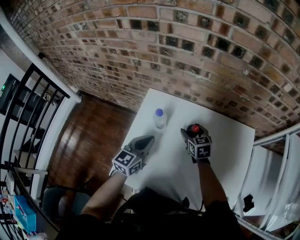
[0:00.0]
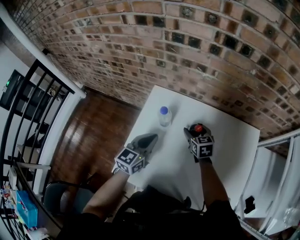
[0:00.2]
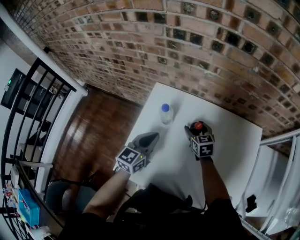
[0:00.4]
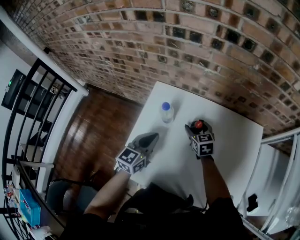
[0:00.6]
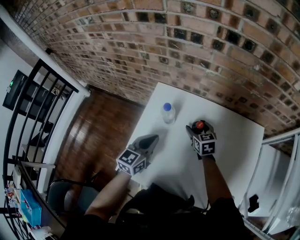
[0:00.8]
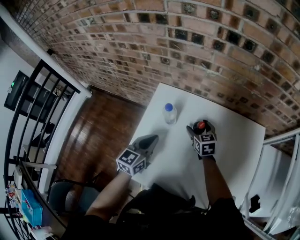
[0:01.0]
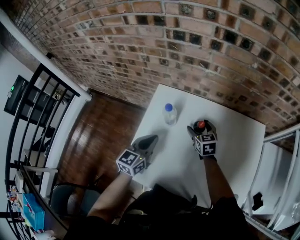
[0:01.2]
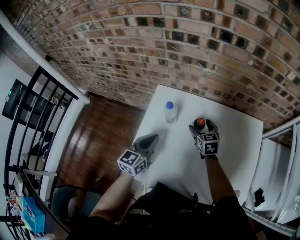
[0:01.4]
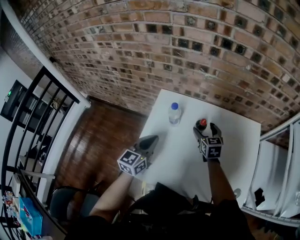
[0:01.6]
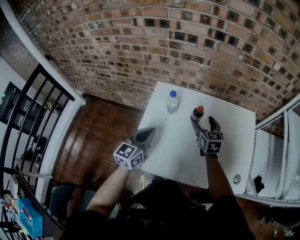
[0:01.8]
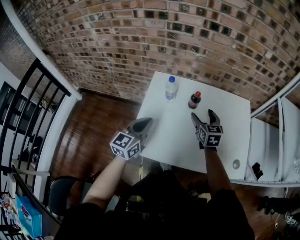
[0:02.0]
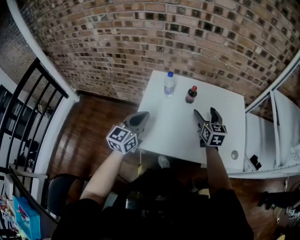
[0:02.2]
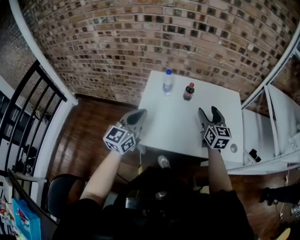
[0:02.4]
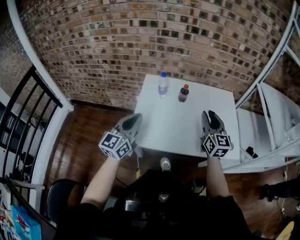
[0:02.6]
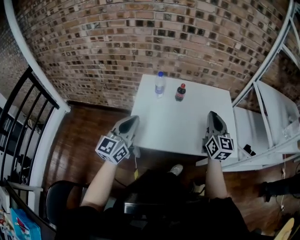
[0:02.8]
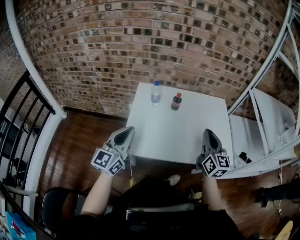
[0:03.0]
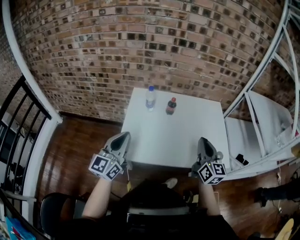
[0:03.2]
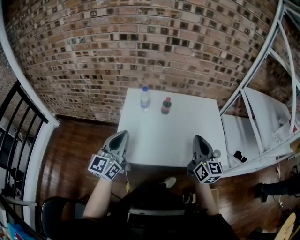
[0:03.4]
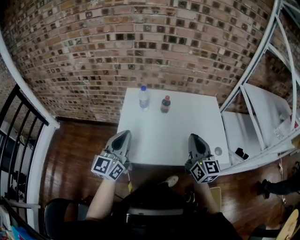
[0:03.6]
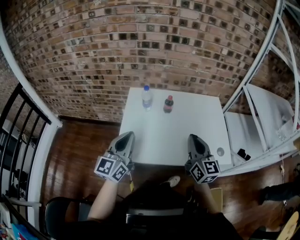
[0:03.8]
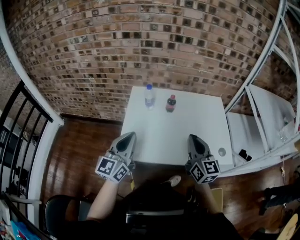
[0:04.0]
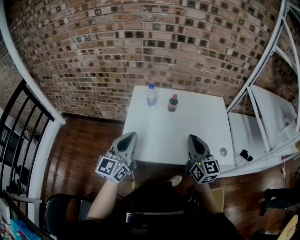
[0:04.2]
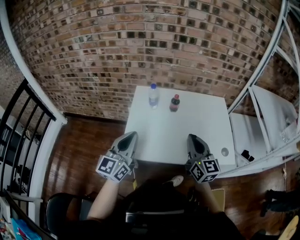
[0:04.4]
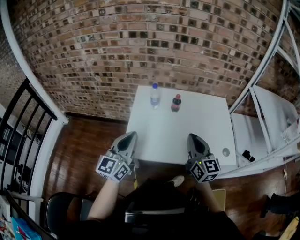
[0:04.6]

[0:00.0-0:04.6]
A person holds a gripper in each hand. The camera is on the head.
0:00.0 to 0:01.6: The left gripper travels backward by approximately 5 cm.
0:01.6 to 0:03.0: Both grippers move backward and upward, about 30 cm. The right gripper angles its fingers upward, by approximately 30 degrees, and closes up, while the left gripper turns by some 20 degrees.
0:03.0 to 0:04.6: The right gripper travels to the left by some 5 cm.

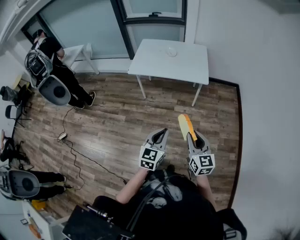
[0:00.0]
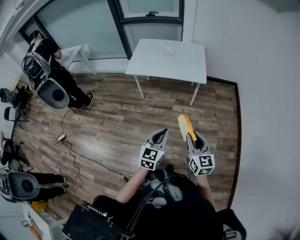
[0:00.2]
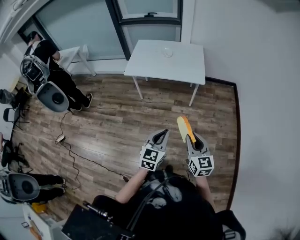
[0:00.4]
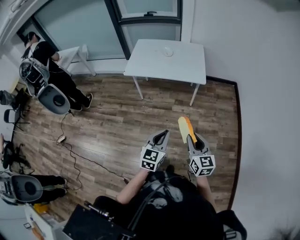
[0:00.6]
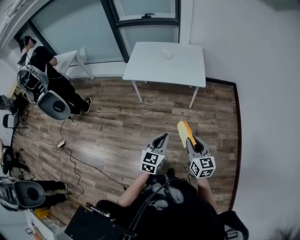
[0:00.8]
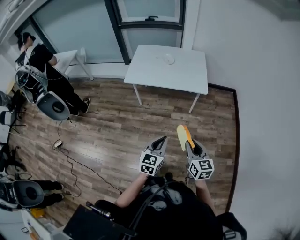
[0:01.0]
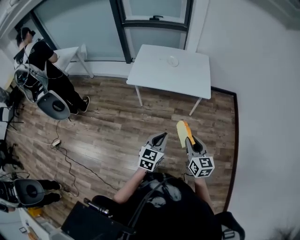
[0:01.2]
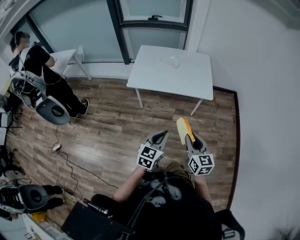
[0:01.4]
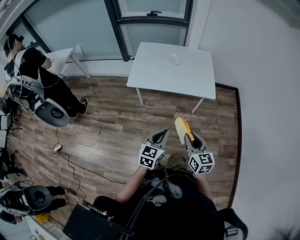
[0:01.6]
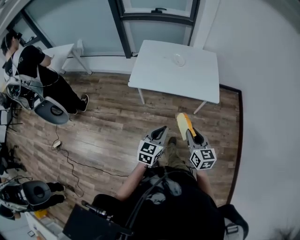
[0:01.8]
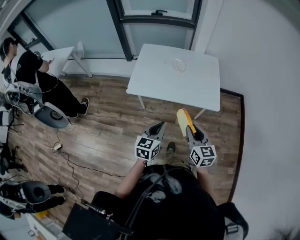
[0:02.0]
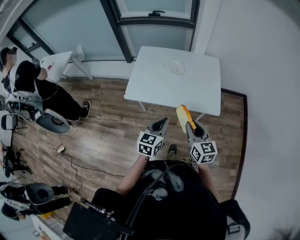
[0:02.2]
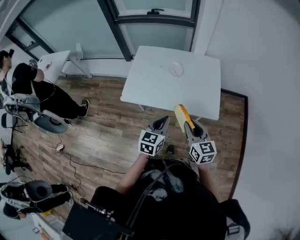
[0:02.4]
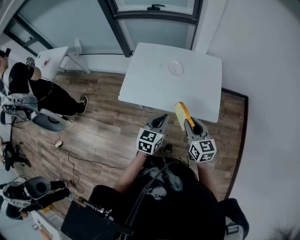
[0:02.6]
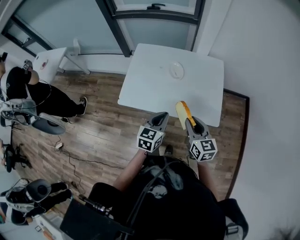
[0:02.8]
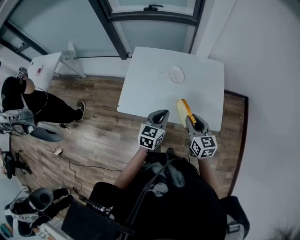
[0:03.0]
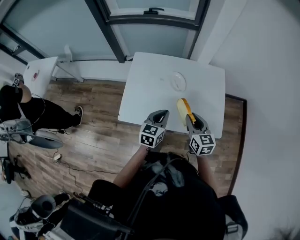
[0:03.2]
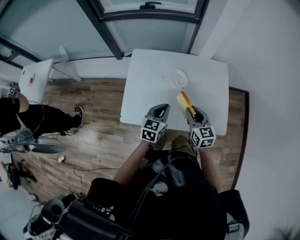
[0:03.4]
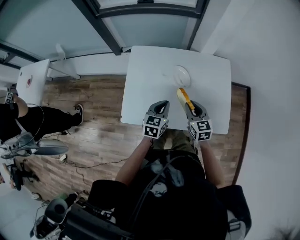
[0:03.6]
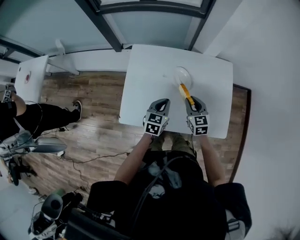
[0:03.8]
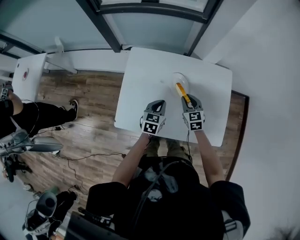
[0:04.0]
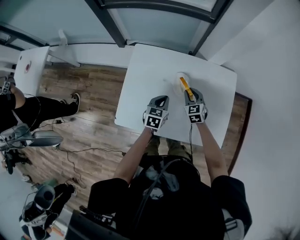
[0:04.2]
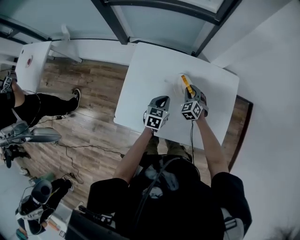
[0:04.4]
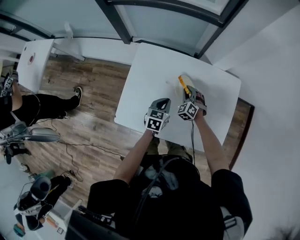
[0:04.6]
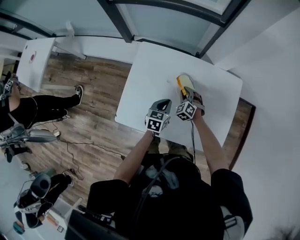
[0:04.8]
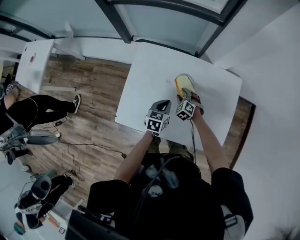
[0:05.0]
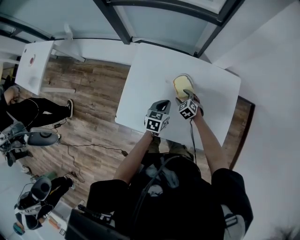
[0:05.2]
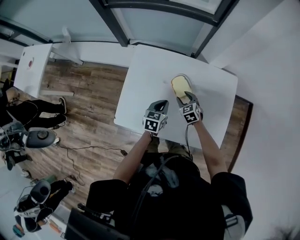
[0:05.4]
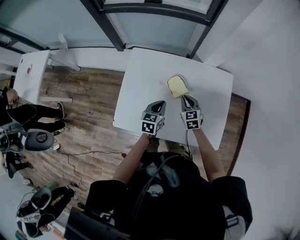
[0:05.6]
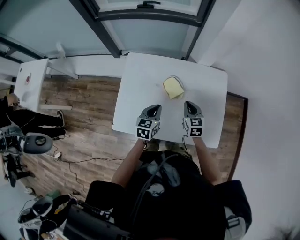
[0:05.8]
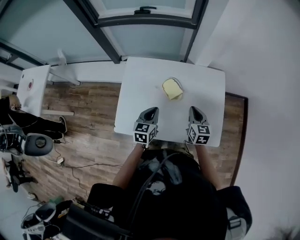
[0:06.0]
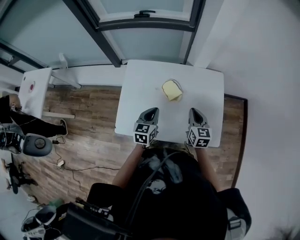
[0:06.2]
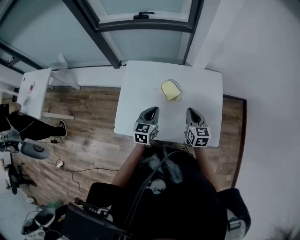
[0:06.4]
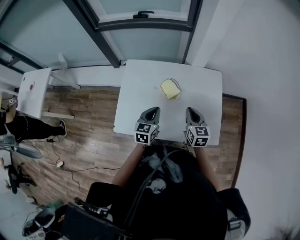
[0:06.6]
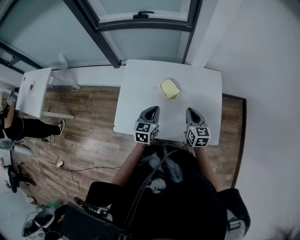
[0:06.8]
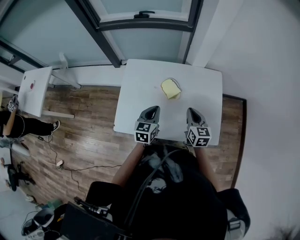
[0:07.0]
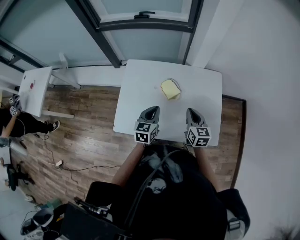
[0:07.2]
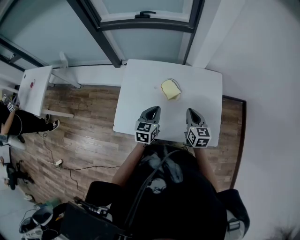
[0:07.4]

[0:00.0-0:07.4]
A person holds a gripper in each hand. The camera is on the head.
0:00.0 to 0:01.4: Both grippers move forward and to the left, roughly 15 cm.
0:01.4 to 0:03.0: Both grippers are carried forward, about 40 cm.
0:03.0 to 0:04.4: Both grippers travel together forward and downward, approximately 35 cm. The right gripper rotates around the line of its fingers by approximately 40 degrees, counterclockwise from behind.
0:04.4 to 0:06.0: The left gripper moves upward and backward, about 10 cm. The right gripper heads backward, upward and to the right, covering approximately 20 cm, twists some 50 degrees clockwise, seen from behind, and opens, then closes once more.
0:06.0 to 0:07.4: The grippers make only small movements.

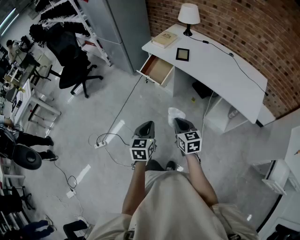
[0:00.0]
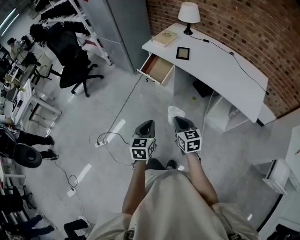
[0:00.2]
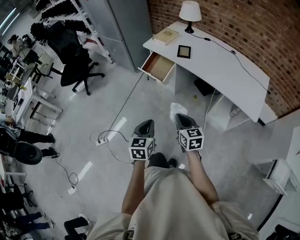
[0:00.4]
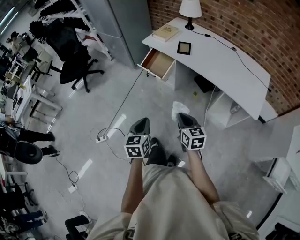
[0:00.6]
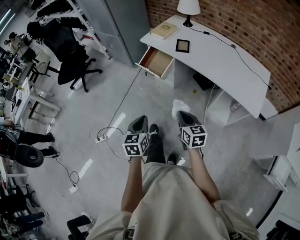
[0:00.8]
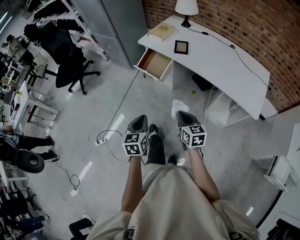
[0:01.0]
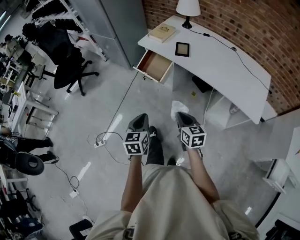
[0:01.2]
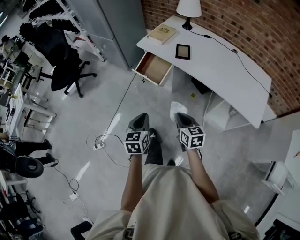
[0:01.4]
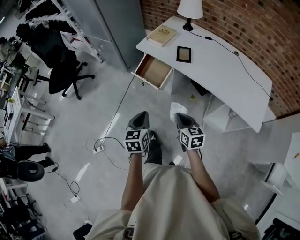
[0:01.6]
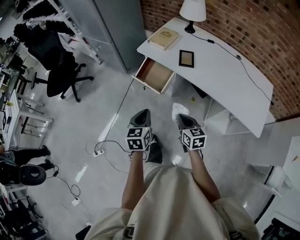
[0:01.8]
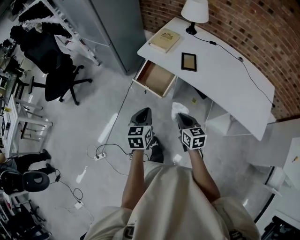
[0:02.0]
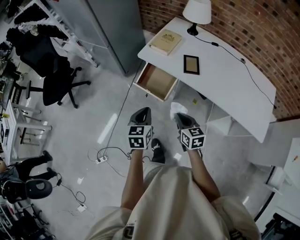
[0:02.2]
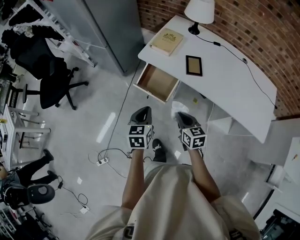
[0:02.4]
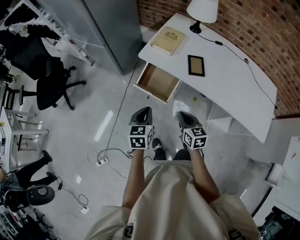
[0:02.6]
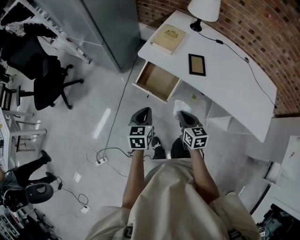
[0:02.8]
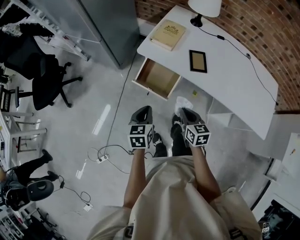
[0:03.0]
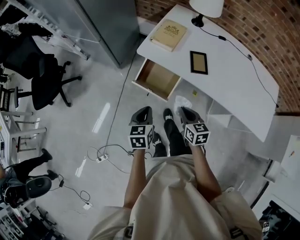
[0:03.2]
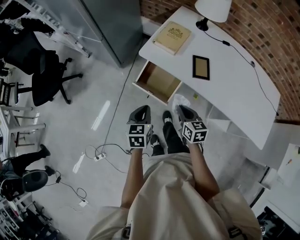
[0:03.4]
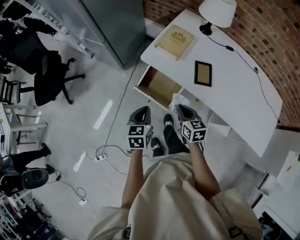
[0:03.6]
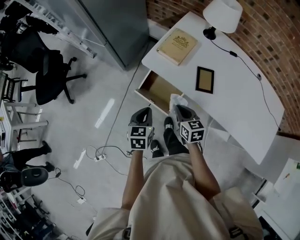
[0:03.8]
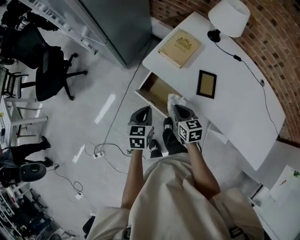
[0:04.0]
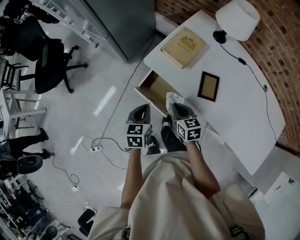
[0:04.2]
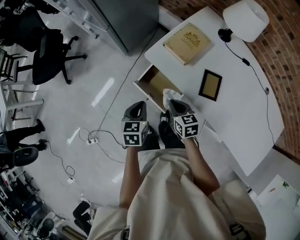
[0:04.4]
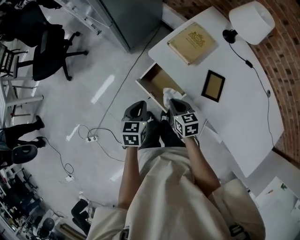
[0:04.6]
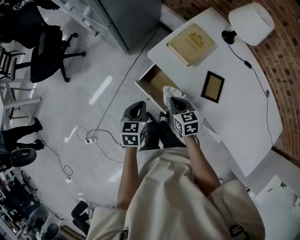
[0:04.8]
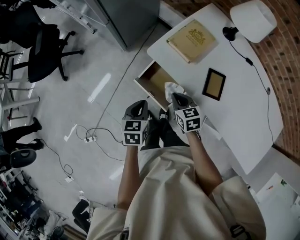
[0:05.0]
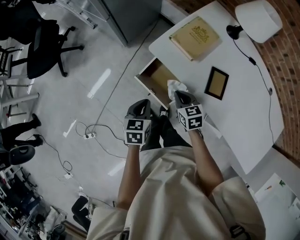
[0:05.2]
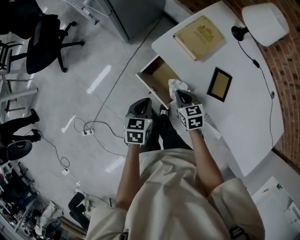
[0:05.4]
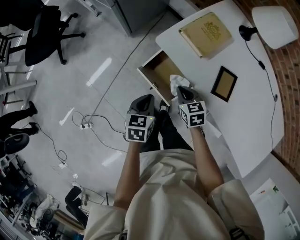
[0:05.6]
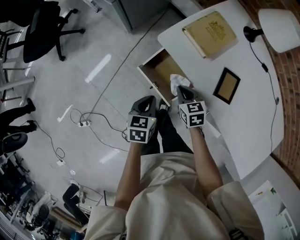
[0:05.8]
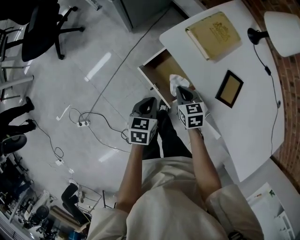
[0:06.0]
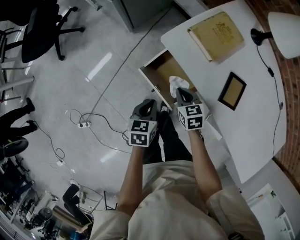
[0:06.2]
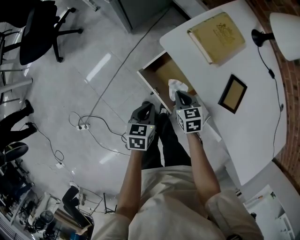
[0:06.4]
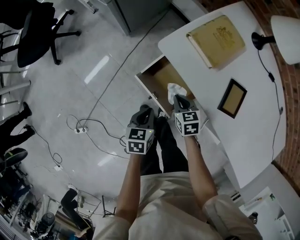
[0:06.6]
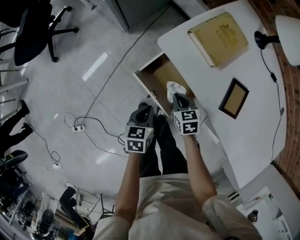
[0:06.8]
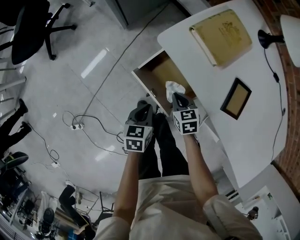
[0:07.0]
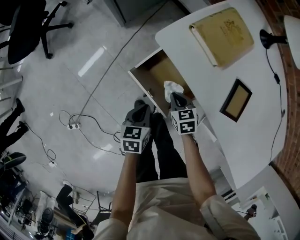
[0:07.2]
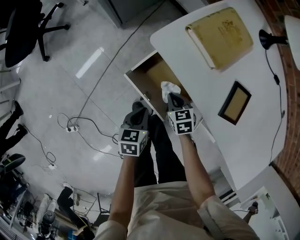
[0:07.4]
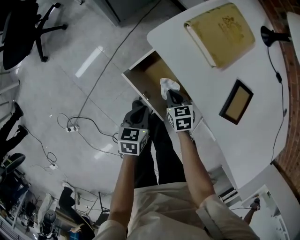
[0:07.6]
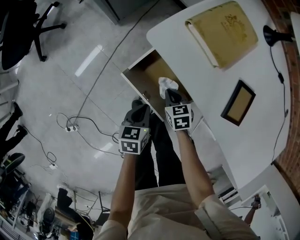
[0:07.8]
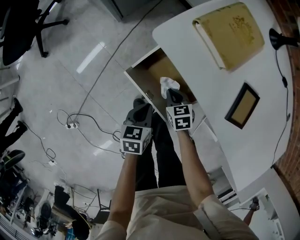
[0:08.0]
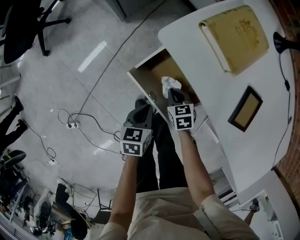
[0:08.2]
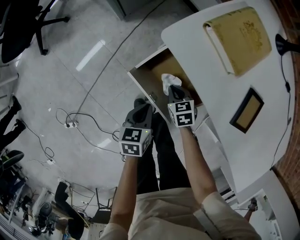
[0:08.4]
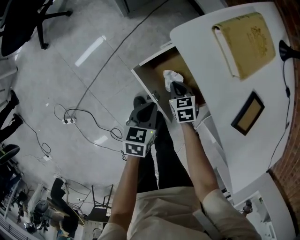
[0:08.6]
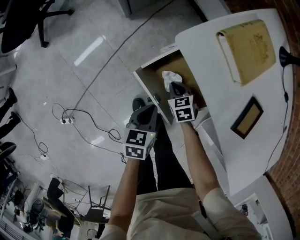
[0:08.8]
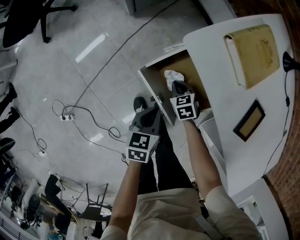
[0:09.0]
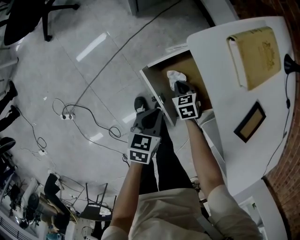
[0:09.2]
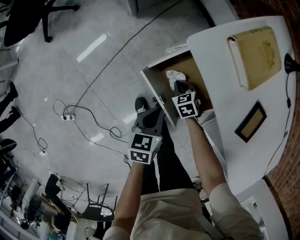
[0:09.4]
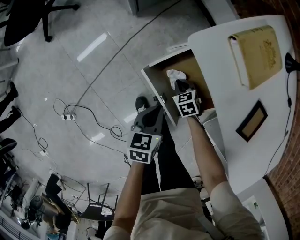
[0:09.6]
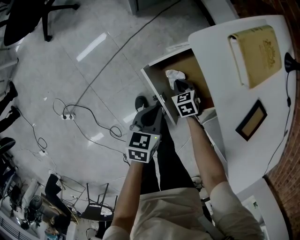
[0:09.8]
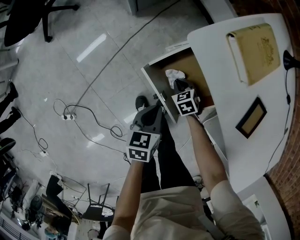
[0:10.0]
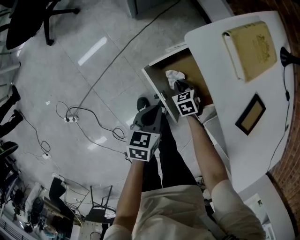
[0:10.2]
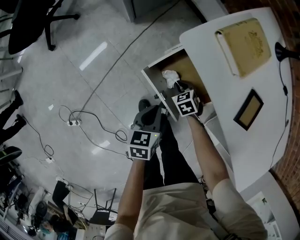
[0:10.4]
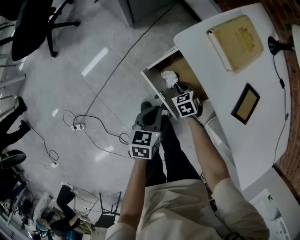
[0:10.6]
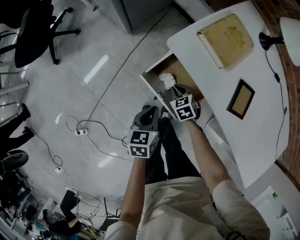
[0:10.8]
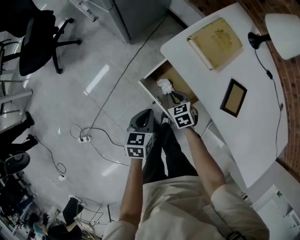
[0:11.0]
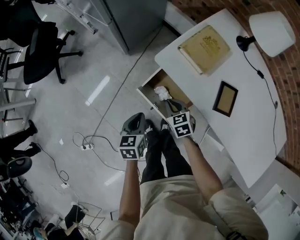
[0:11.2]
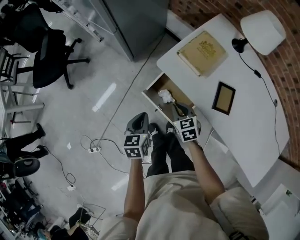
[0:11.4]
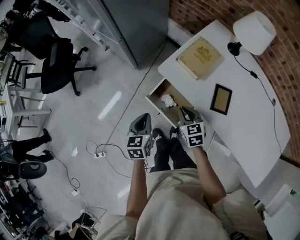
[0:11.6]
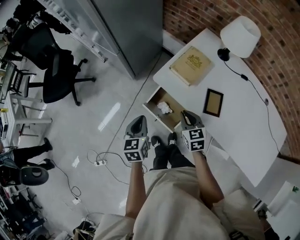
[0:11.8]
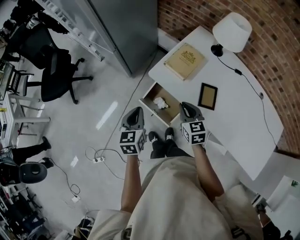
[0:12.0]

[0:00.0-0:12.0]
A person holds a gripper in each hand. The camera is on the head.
0:00.0 to 0:01.6: The two grippers go approximately 20 cm forward.
0:01.6 to 0:03.0: Both grippers travel together forward, roughly 25 cm.
0:03.0 to 0:04.4: The grippers both shift forward by about 15 cm. The right gripper changes its angle by about 20 degrees.
0:04.4 to 0:06.0: Both grippers travel together downward, roughly 10 cm.
0:06.0 to 0:07.6: Both grippers move downward, approximately 15 cm.
0:07.6 to 0:09.0: The right gripper shifts about 10 cm downward and to the left.
0:09.0 to 0:10.4: The grippers make only small movements.
0:10.4 to 0:12.0: Both grippers move upward, roughly 40 cm. The right gripper points its fingers approximately 30 degrees further upward. The left gripper turns by some 30 degrees.
